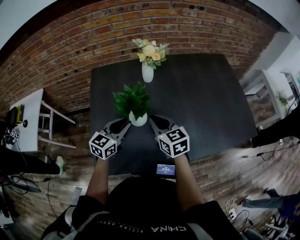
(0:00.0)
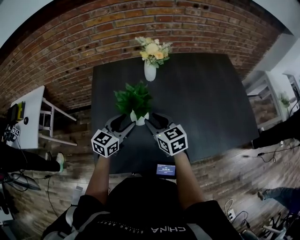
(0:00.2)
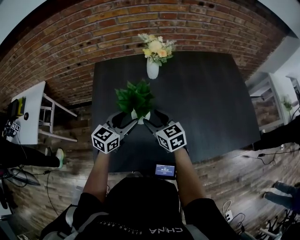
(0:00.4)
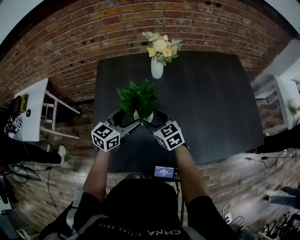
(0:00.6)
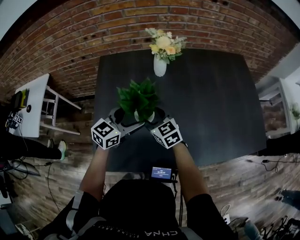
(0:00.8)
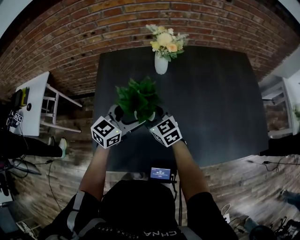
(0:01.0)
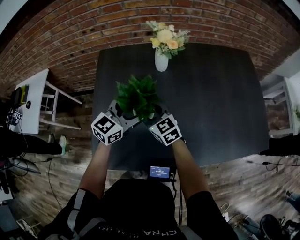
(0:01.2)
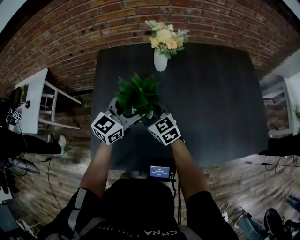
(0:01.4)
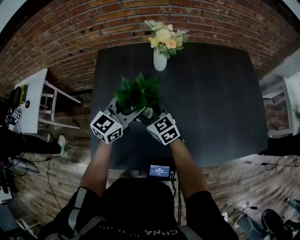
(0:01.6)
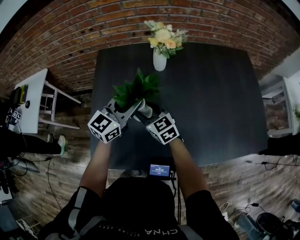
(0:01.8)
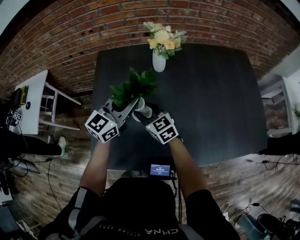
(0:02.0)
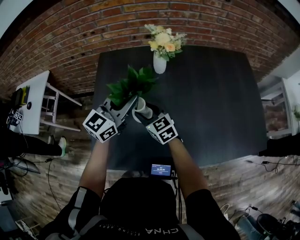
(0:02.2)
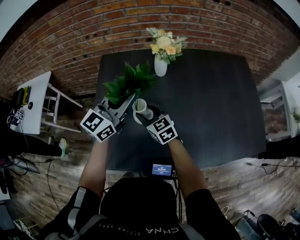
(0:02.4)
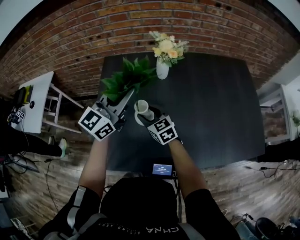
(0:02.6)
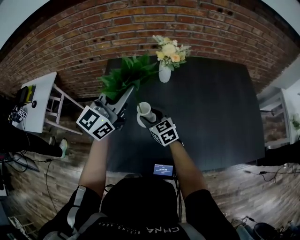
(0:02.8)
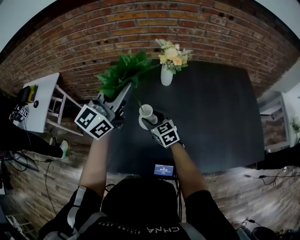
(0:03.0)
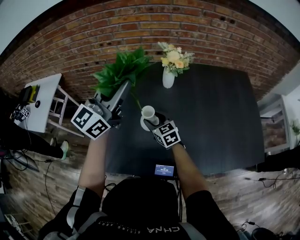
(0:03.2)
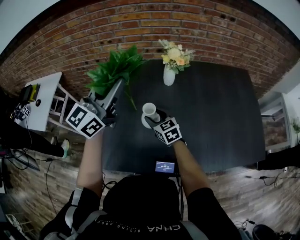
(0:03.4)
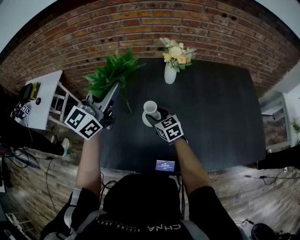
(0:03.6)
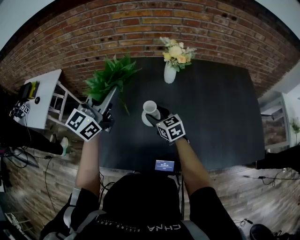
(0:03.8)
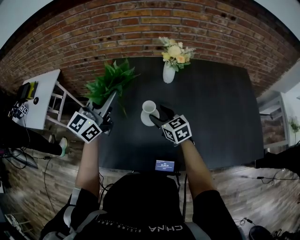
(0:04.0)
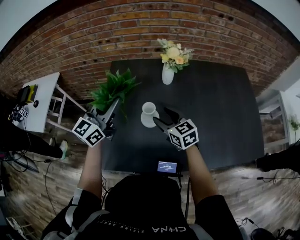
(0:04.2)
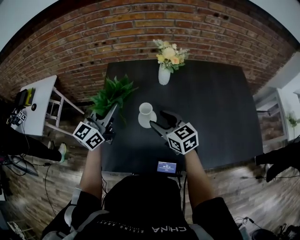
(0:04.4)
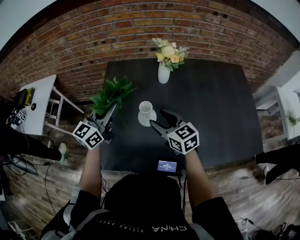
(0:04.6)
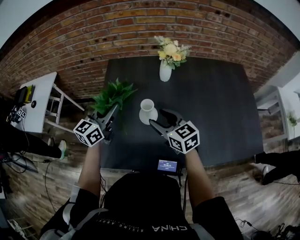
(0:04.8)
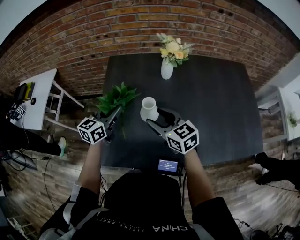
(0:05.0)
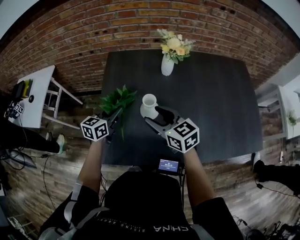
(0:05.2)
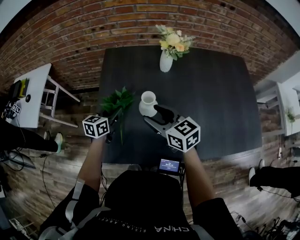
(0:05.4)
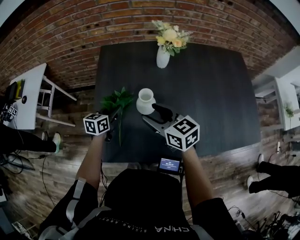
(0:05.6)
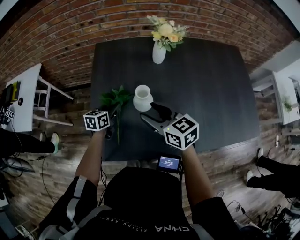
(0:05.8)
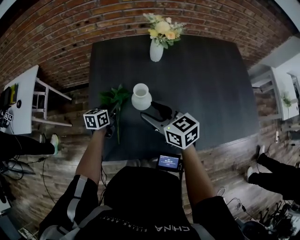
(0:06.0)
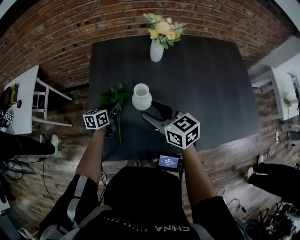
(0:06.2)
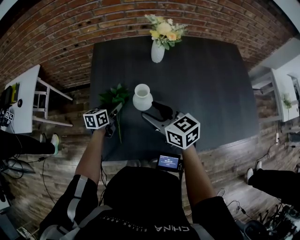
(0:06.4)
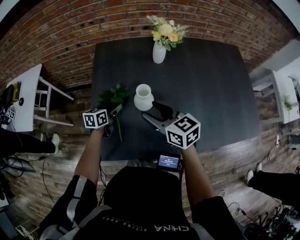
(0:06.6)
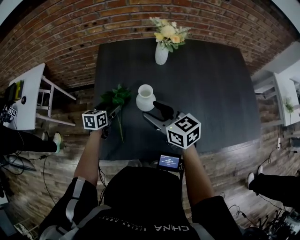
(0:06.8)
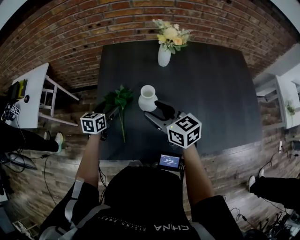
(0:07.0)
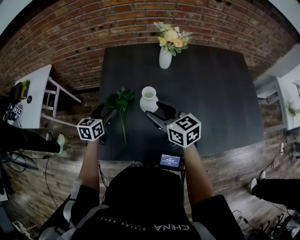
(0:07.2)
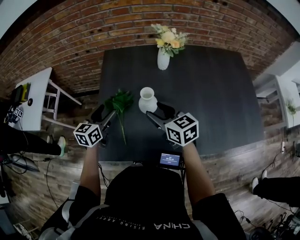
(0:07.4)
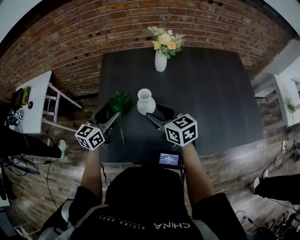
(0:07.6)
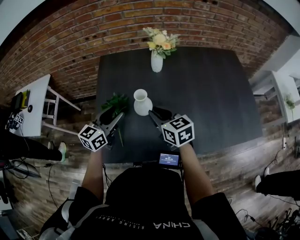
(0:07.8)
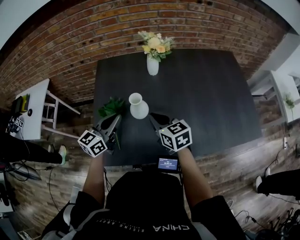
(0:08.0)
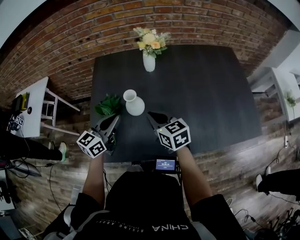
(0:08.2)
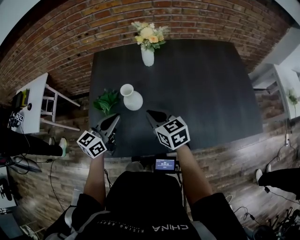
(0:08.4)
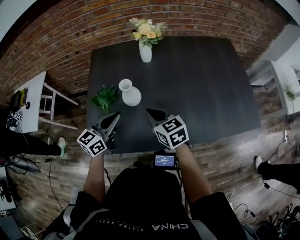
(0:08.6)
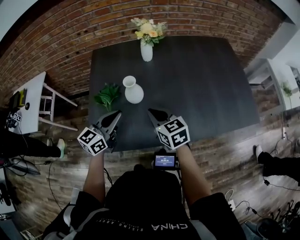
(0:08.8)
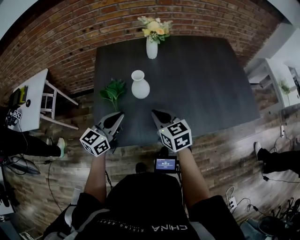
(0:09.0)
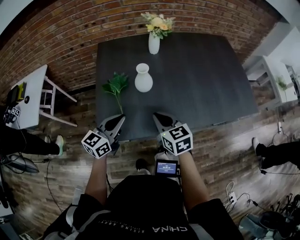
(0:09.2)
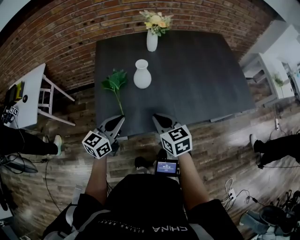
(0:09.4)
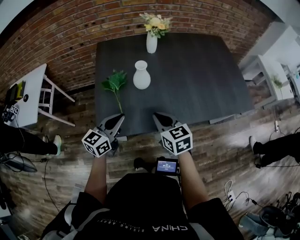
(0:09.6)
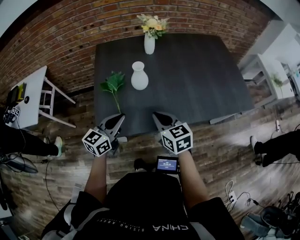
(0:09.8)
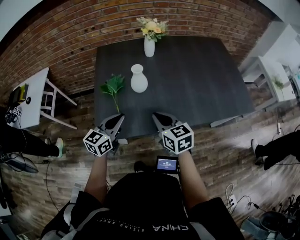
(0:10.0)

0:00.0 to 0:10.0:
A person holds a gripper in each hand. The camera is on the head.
0:00.0 to 0:01.4: The left gripper goes roughly 10 cm forward, and opens up. Meanwhile the right gripper moves downward, to the left and forward, some 15 cm, swivels some 20 degrees, and opens up.
0:01.4 to 0:02.8: The left gripper travels upward by roughly 15 cm, turns by some 20 degrees, and closes its fingers.
0:02.8 to 0:04.2: The right gripper heads upward, covering roughly 5 cm. The left gripper goes approximately 10 cm to the left and downward.
0:04.2 to 0:05.8: The left gripper heads downward, covering about 25 cm, and tips its fingers downward by about 40 degrees, while the right gripper ends up roughly 5 cm from where it was.
0:05.8 to 0:07.2: The left gripper goes some 10 cm upward and to the left, and opens its fingers.
0:07.2 to 0:08.6: The right gripper travels to the right and backward by about 10 cm, and closes up; the left gripper is displaced to the right, backward and upward by roughly 20 cm, swivels some 30 degrees, and closes up.
0:08.6 to 0:10.0: The two grippers go approximately 15 cm backward.

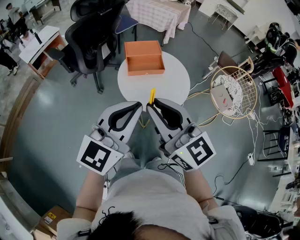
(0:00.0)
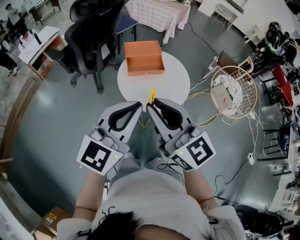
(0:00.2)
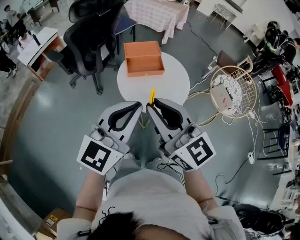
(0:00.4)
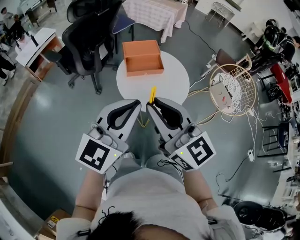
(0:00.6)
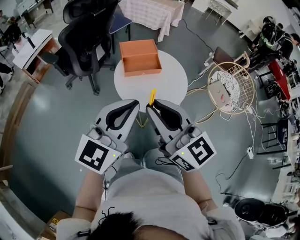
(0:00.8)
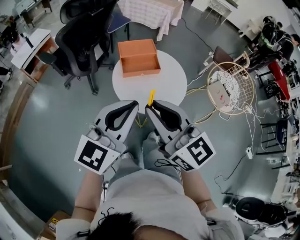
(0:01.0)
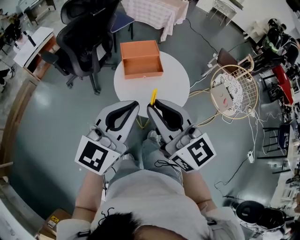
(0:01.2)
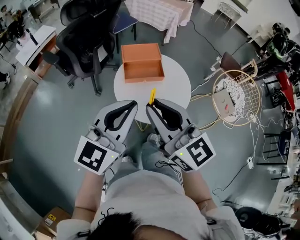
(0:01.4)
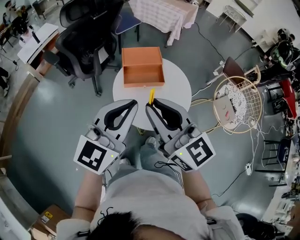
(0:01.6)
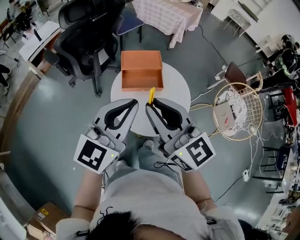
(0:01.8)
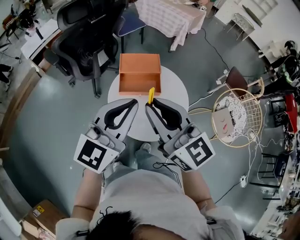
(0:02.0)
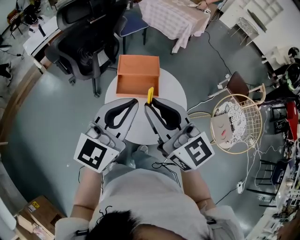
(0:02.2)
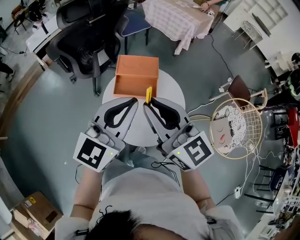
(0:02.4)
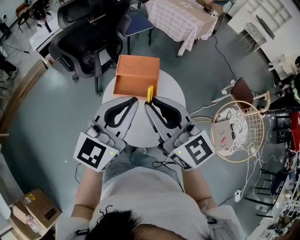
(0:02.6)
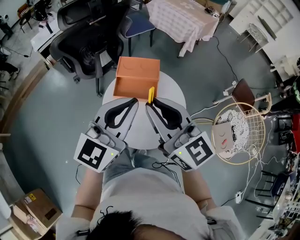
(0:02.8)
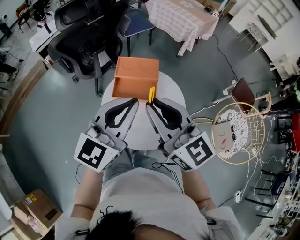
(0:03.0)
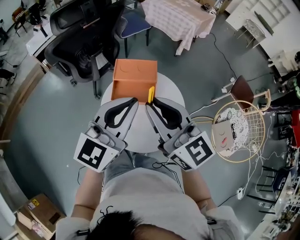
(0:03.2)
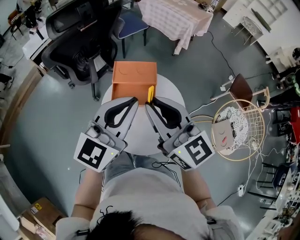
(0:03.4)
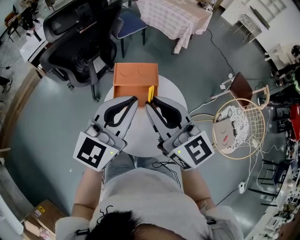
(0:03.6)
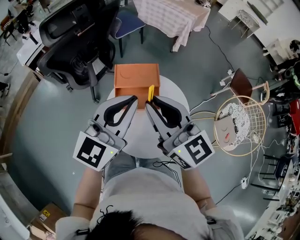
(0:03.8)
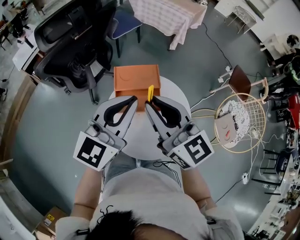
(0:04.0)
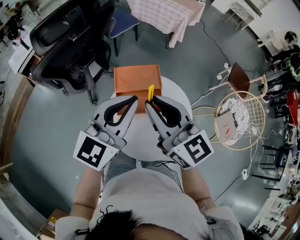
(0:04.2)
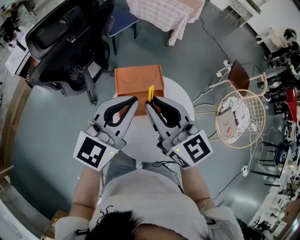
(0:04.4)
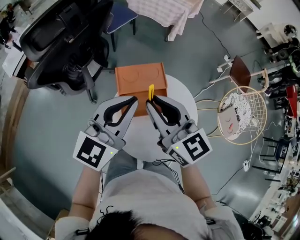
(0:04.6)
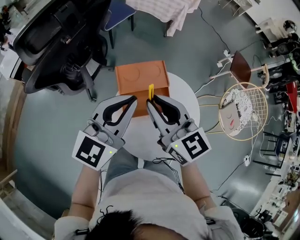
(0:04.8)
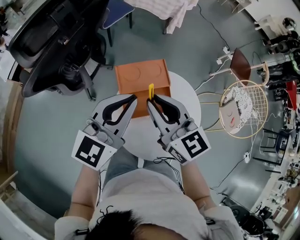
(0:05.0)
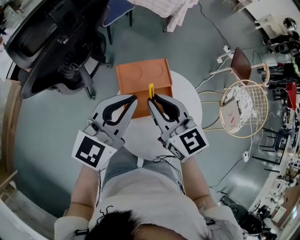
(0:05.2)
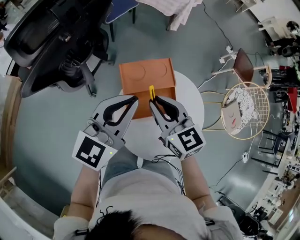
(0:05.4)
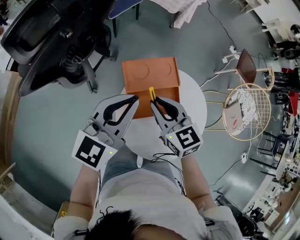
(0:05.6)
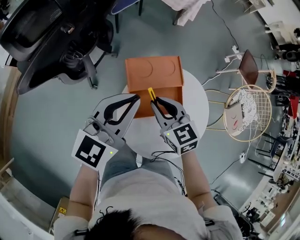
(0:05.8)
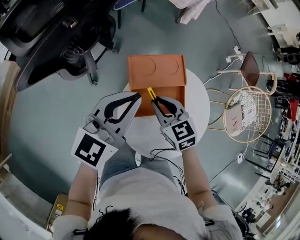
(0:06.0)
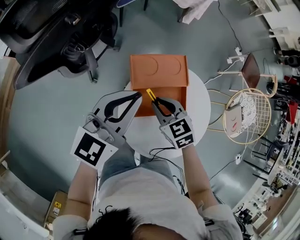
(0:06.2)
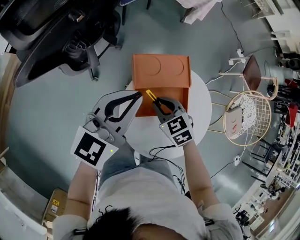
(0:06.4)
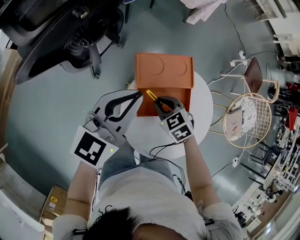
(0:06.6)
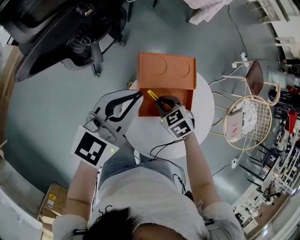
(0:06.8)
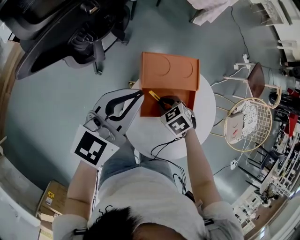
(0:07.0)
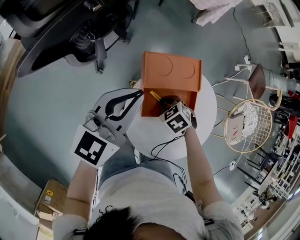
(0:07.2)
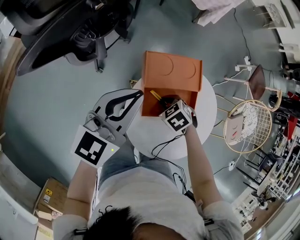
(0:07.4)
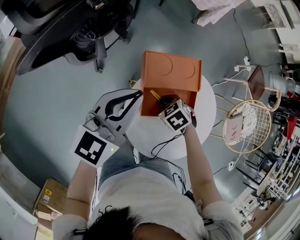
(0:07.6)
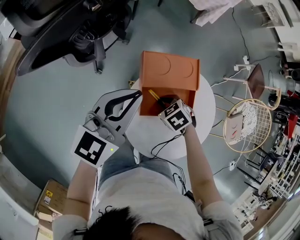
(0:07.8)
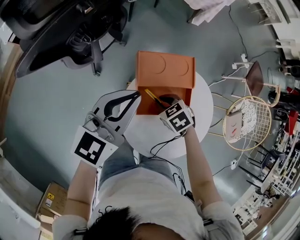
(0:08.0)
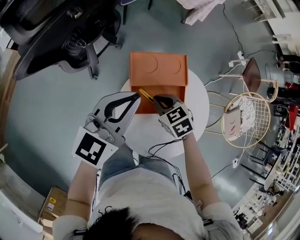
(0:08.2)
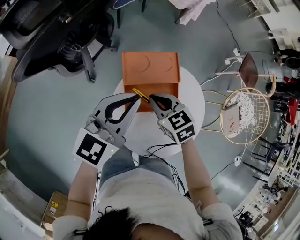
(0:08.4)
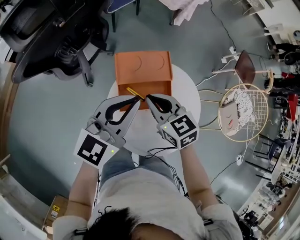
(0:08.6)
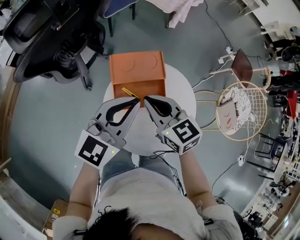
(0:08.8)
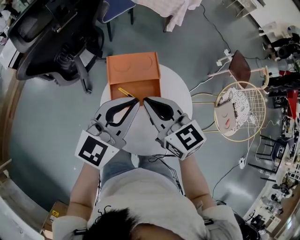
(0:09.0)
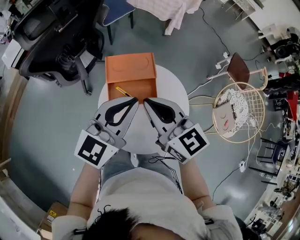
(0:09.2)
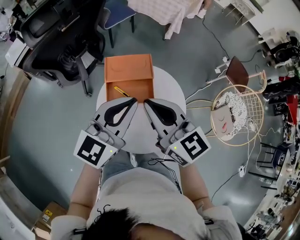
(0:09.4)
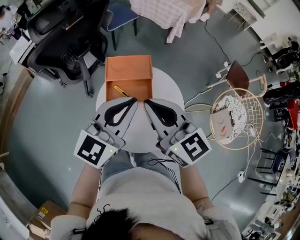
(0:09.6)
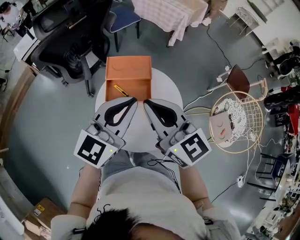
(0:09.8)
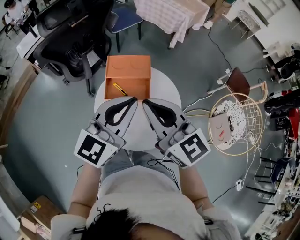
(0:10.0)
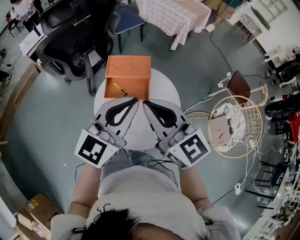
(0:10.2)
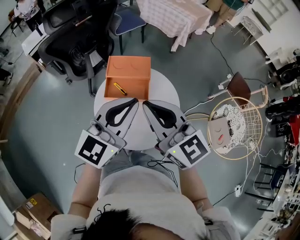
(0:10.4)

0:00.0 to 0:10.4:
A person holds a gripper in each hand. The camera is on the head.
0:00.0 to 0:01.4: The grippers both shift forward by roughly 10 cm.
0:01.4 to 0:03.0: The two grippers go approximately 20 cm forward and to the right.
0:03.0 to 0:04.4: Both grippers move forward and to the left, about 15 cm.
0:04.4 to 0:06.0: The right gripper travels downward by roughly 25 cm, and tilts its fingers roughly 30 degrees downward, while the left gripper goes some 15 cm downward, to the left and forward.
0:06.0 to 0:07.4: The right gripper travels downward by some 15 cm, and points its fingers roughly 30 degrees further downward. Meanwhile the left gripper changes place by about 5 cm.
0:07.4 to 0:09.0: The left gripper moves approximately 20 cm. Meanwhile the right gripper is displaced upward by roughly 25 cm, and tips its fingers upward by approximately 60 degrees.
0:09.0 to 0:10.4: The right gripper moves backward, upward and to the right, some 20 cm, and swivels roughly 20 degrees. Meanwhile the left gripper shifts some 15 cm backward, to the right and upward.

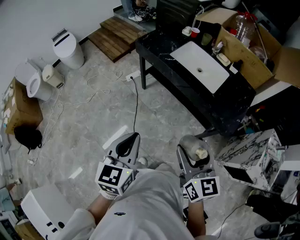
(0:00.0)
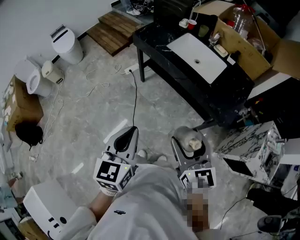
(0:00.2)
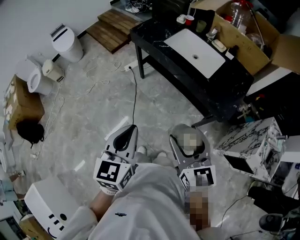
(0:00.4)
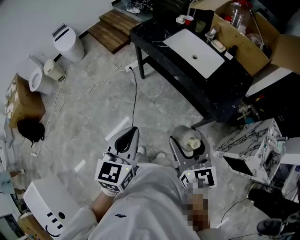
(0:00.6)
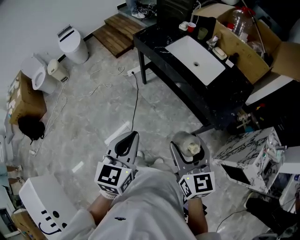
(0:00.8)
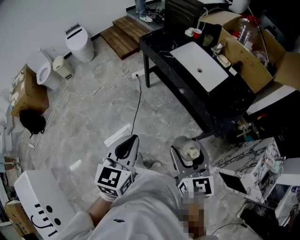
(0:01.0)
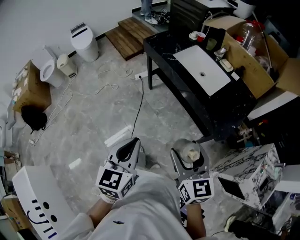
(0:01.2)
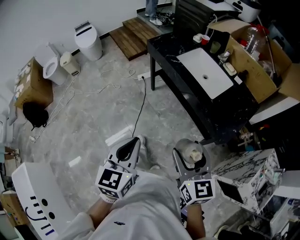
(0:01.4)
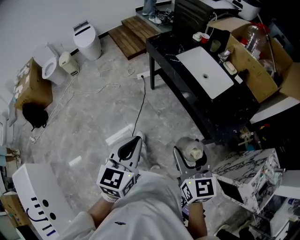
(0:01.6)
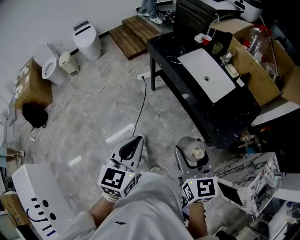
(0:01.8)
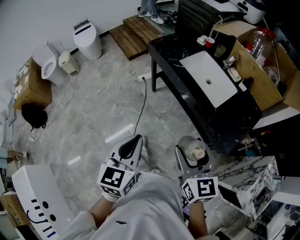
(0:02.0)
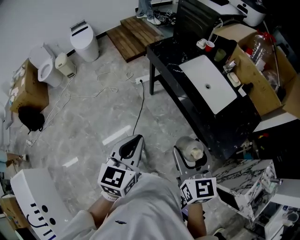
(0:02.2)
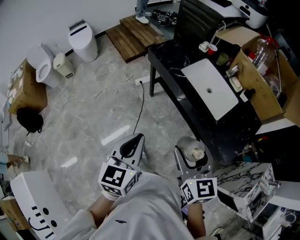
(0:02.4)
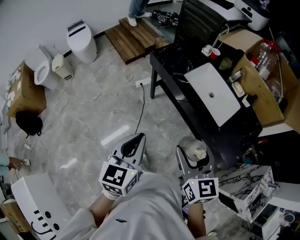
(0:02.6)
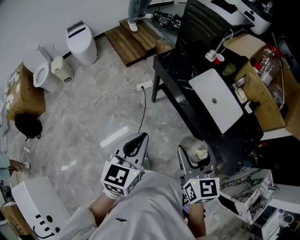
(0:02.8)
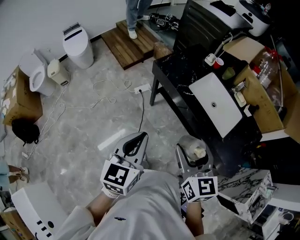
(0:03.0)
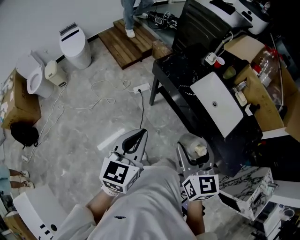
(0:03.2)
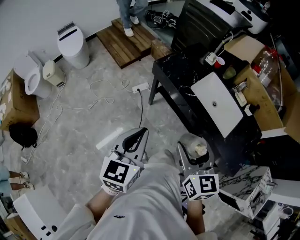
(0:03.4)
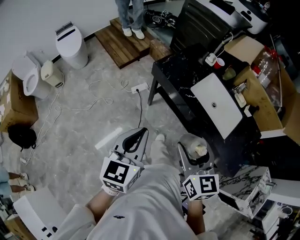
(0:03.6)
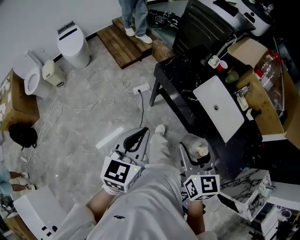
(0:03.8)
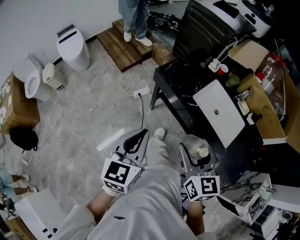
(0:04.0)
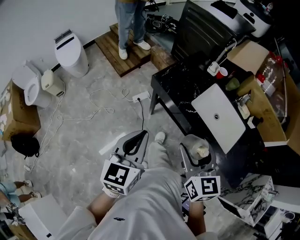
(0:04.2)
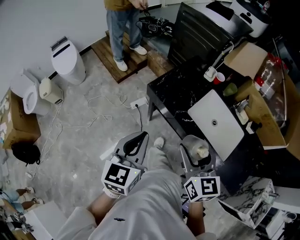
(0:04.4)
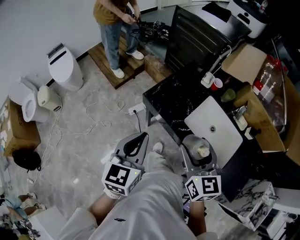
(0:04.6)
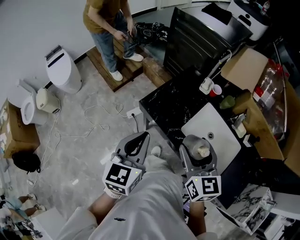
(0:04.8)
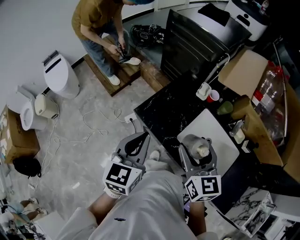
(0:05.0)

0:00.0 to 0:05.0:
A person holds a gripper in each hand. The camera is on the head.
0:00.0 to 0:01.6: Both grippers move to the right, about 10 cm.
0:01.6 to 0:03.4: The grippers both shift forward and to the left by roughly 35 cm.
0:03.4 to 0:05.0: The two grippers go roughly 35 cm forward.